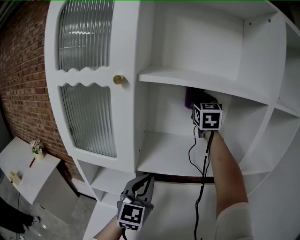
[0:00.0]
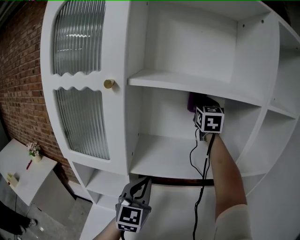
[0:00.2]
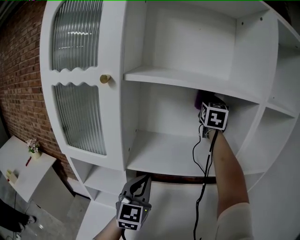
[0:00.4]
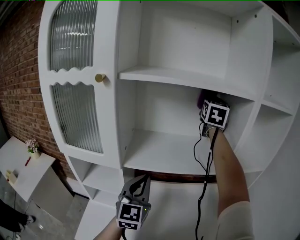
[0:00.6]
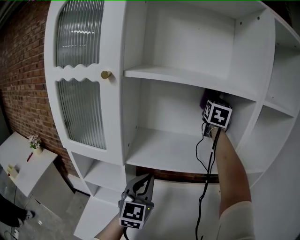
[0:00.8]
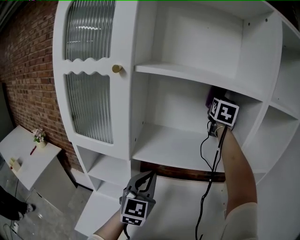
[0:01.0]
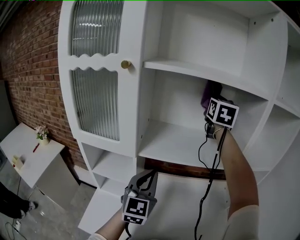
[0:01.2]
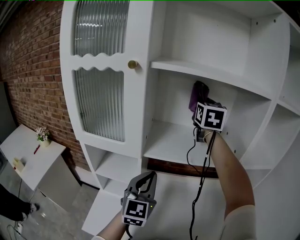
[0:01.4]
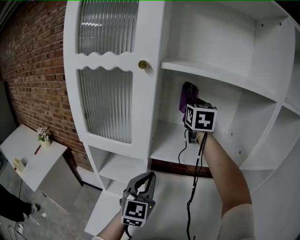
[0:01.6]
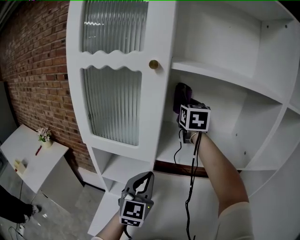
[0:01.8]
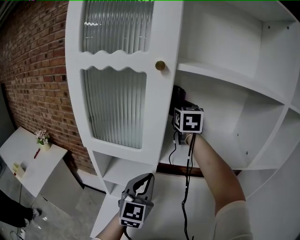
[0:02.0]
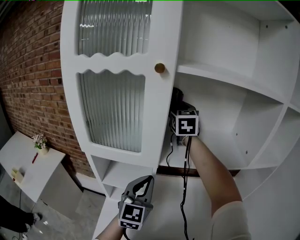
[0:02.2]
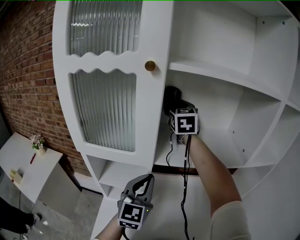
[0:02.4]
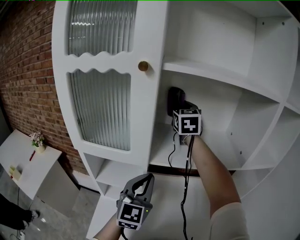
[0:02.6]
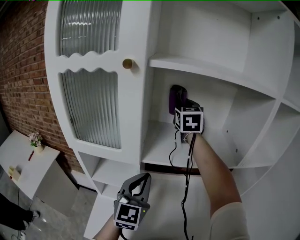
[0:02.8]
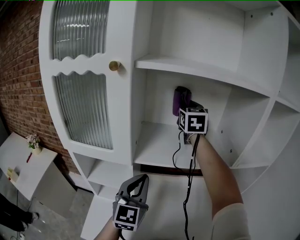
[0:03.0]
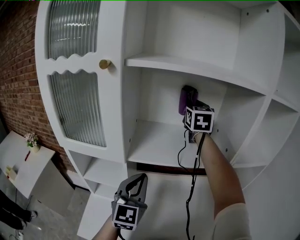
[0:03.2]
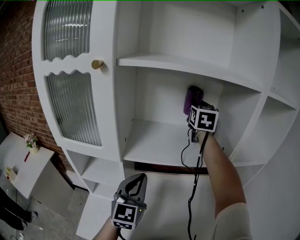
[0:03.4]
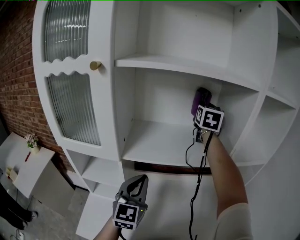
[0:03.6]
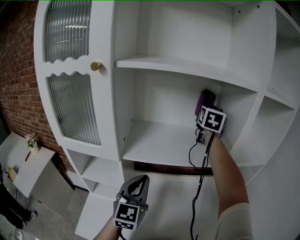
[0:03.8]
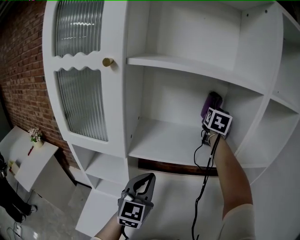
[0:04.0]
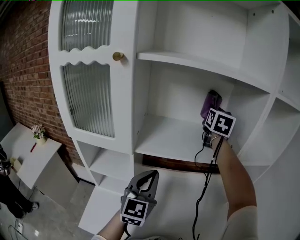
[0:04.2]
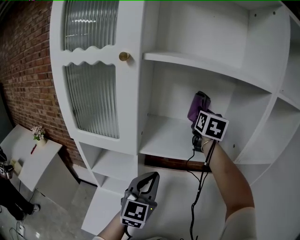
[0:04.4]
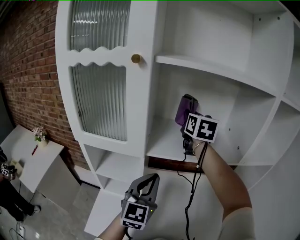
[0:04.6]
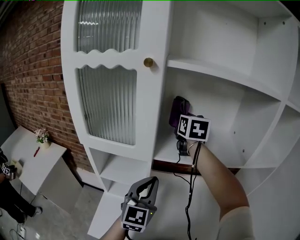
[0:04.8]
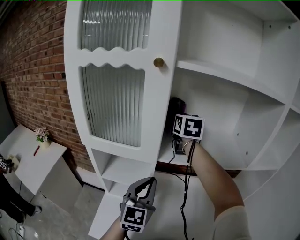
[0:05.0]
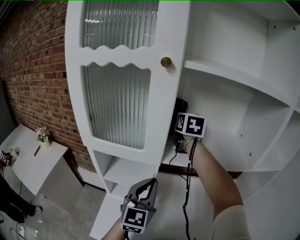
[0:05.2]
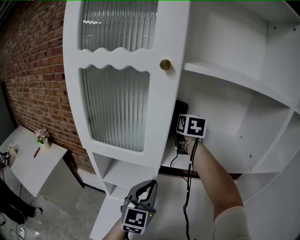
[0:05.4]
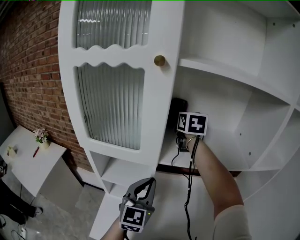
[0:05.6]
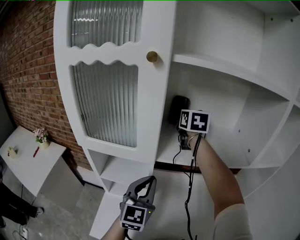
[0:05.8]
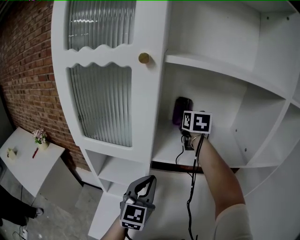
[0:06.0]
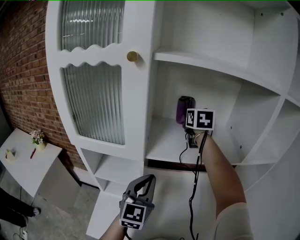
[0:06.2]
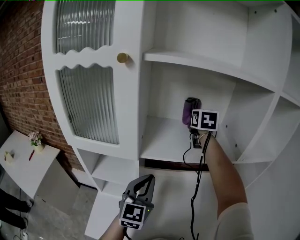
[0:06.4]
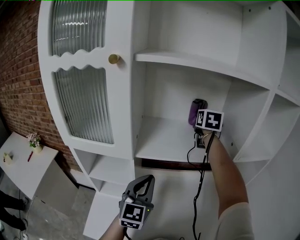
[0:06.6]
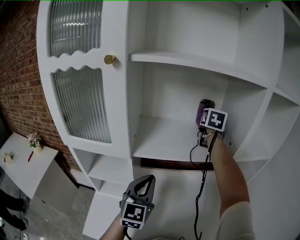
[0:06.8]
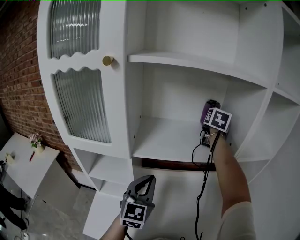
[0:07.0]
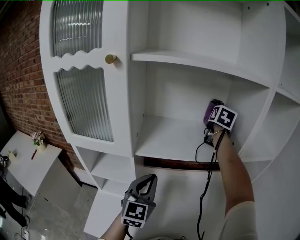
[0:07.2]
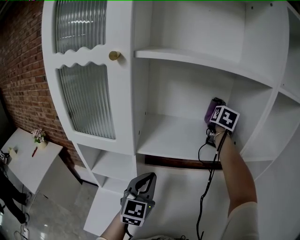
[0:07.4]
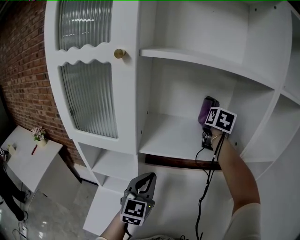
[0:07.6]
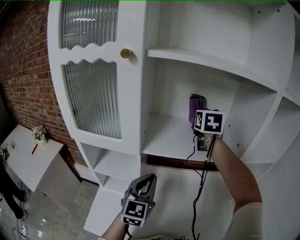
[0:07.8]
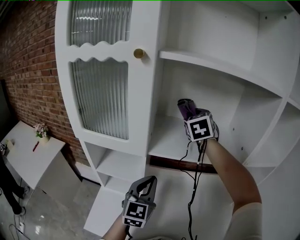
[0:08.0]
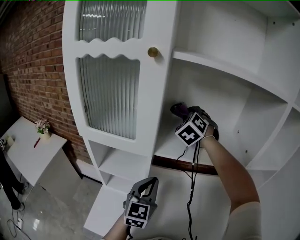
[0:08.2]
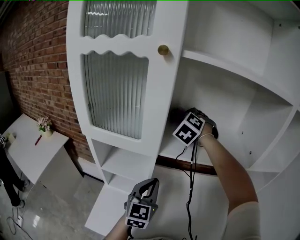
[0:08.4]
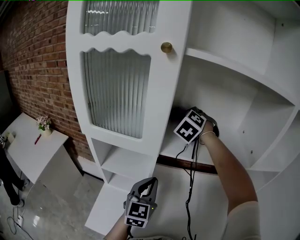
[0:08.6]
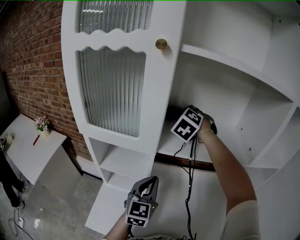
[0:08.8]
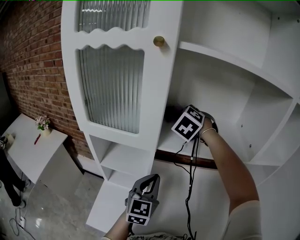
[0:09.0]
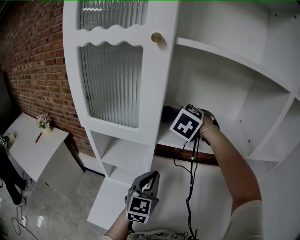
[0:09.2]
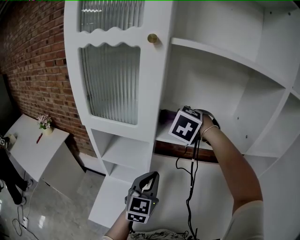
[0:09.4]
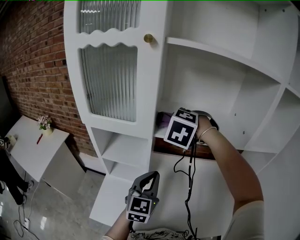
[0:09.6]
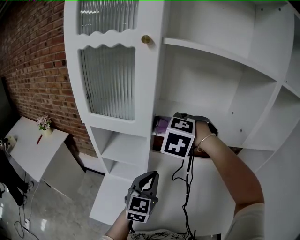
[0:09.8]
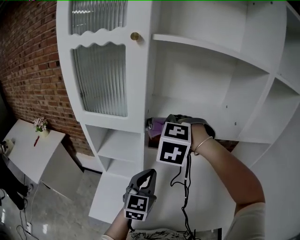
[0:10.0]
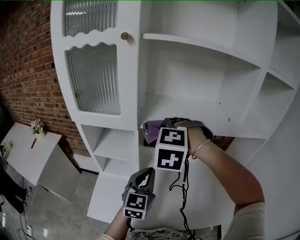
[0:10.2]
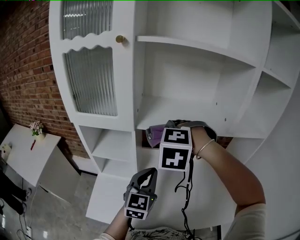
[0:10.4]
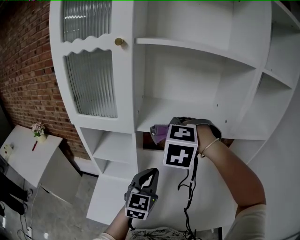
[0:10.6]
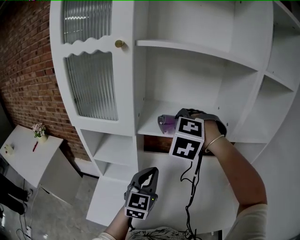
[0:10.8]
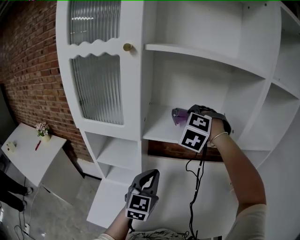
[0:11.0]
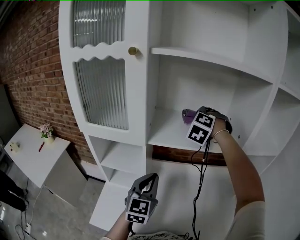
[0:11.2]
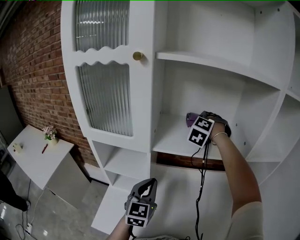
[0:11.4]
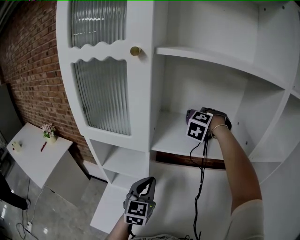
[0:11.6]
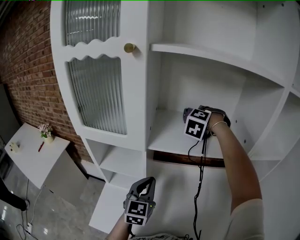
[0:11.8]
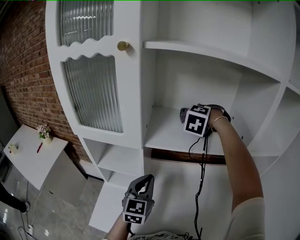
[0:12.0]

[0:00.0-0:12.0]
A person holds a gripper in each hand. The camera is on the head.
0:00.0 to 0:01.6: The left gripper travels to the right and back again, roughly 5 cm each way, while the right gripper heads to the left and downward, covering approximately 10 cm.
0:01.6 to 0:03.0: The right gripper ends up approximately 5 cm from where it was.
0:03.0 to 0:04.4: The right gripper is displaced to the right by approximately 5 cm.
0:04.4 to 0:06.0: The right gripper goes roughly 10 cm to the left. Meanwhile the left gripper shifts roughly 5 cm to the left.
0:06.0 to 0:07.6: The right gripper shifts about 20 cm to the right, while the left gripper is displaced to the right by about 5 cm.
0:07.6 to 0:09.0: The right gripper heads to the left, covering roughly 25 cm, and rolls counterclockwise, seen from behind, by approximately 80 degrees. Meanwhile the left gripper changes place by some 5 cm.
0:09.0 to 0:10.4: The left gripper goes approximately 10 cm backward and to the right, while the right gripper goes approximately 20 cm backward, and turns by roughly 30 degrees.
0:10.4 to 0:12.0: The right gripper heads forward, covering about 25 cm, while the left gripper heads to the left and forward, covering approximately 10 cm.

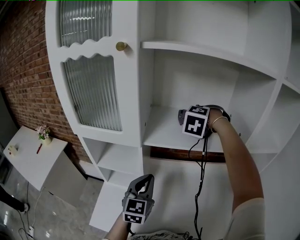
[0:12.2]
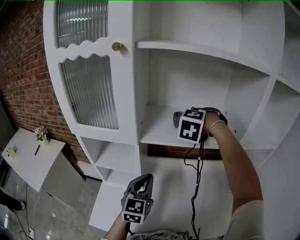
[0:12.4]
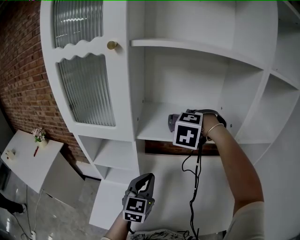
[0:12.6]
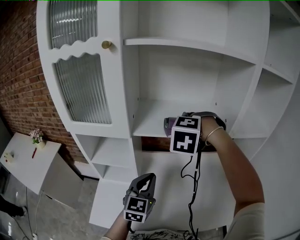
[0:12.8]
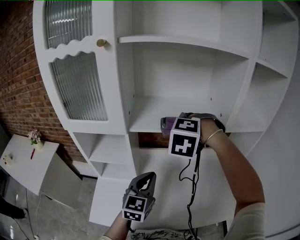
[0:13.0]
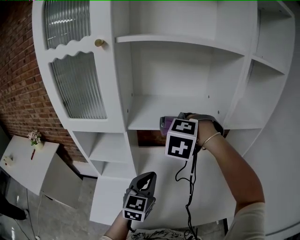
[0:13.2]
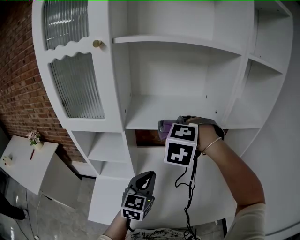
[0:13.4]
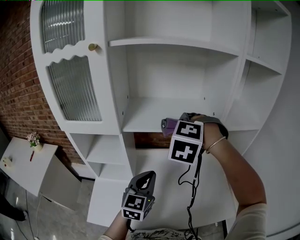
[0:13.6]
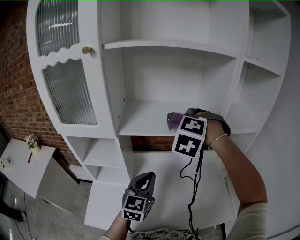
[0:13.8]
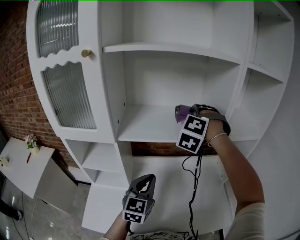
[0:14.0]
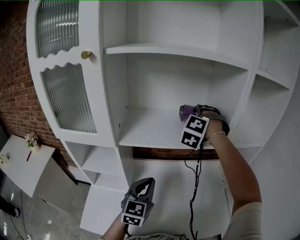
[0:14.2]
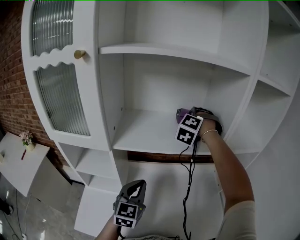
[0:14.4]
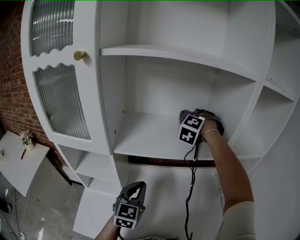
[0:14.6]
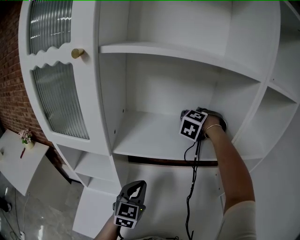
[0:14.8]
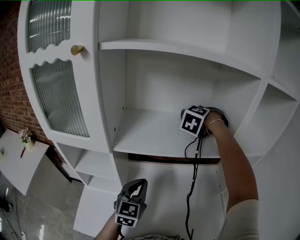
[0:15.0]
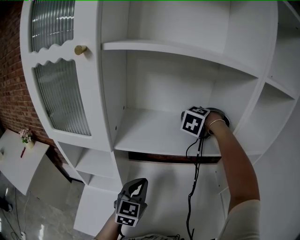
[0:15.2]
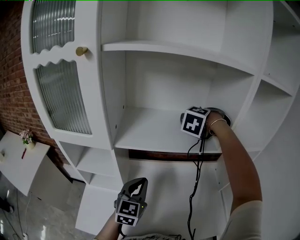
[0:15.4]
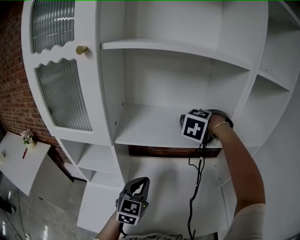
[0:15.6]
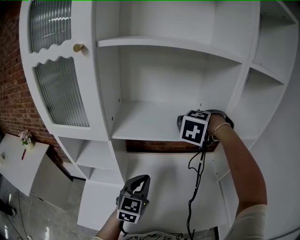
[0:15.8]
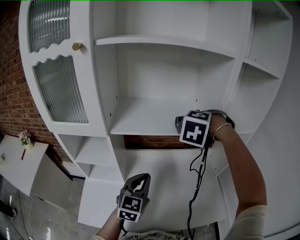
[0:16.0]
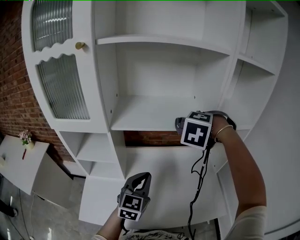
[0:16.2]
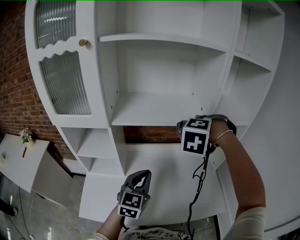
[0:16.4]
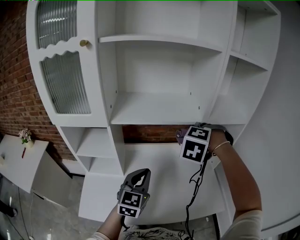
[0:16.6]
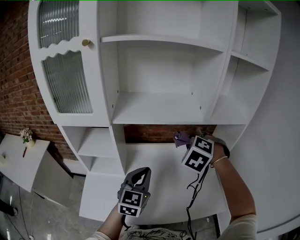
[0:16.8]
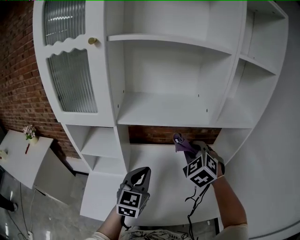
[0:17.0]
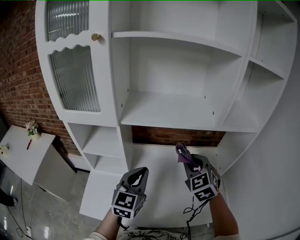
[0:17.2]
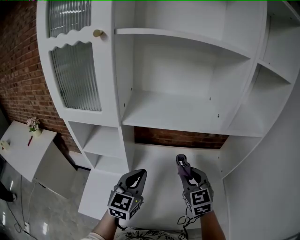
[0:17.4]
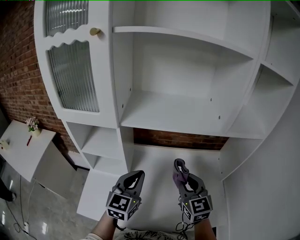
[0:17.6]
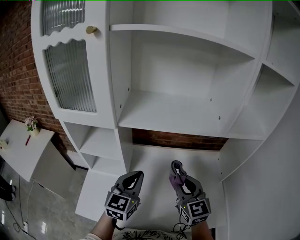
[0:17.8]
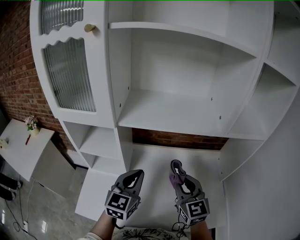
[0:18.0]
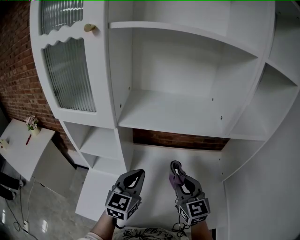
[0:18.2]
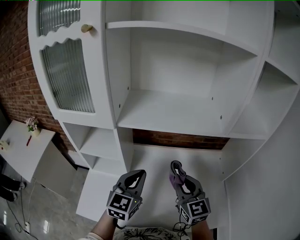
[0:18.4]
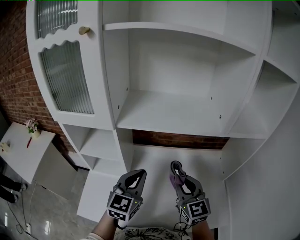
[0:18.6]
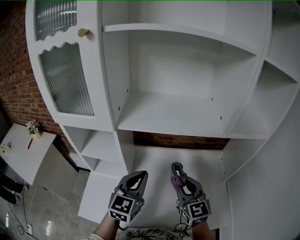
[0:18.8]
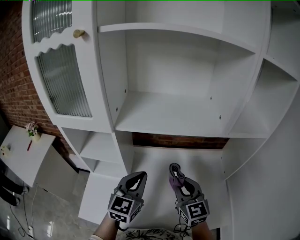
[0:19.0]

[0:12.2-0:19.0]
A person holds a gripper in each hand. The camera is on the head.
0:12.2 to 0:13.6: The left gripper is displaced to the right by some 10 cm; the right gripper goes about 15 cm backward and to the right.
0:13.6 to 0:15.0: The right gripper heads forward, covering some 25 cm, while the left gripper moves forward, roughly 10 cm.
0:15.0 to 0:16.2: The left gripper goes about 10 cm backward and to the right. The right gripper shifts some 20 cm backward and to the right.
0:16.2 to 0:17.6: The left gripper ends up about 5 cm from where it was; the right gripper travels downward by about 15 cm, and points its fingers about 40 degrees further upward.
0:17.6 to 0:19.0: The grippers move only a little.

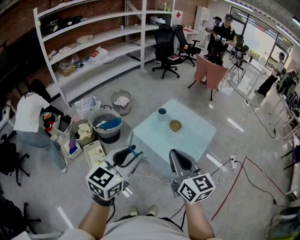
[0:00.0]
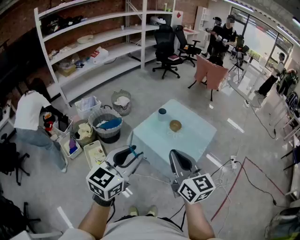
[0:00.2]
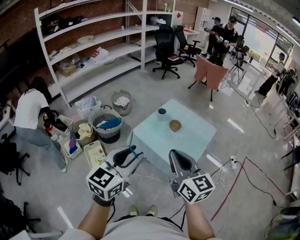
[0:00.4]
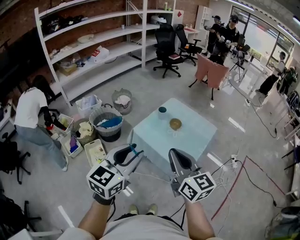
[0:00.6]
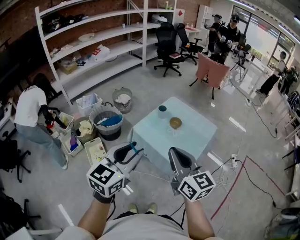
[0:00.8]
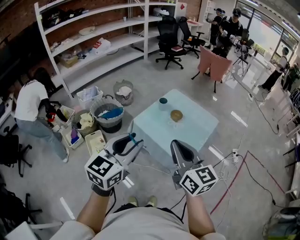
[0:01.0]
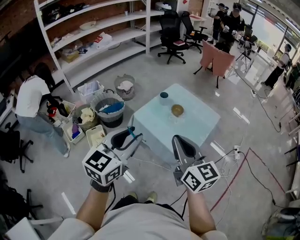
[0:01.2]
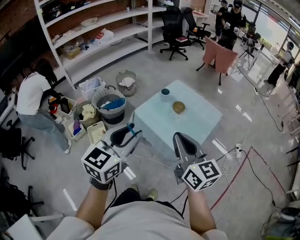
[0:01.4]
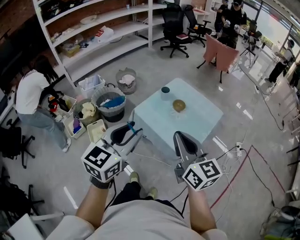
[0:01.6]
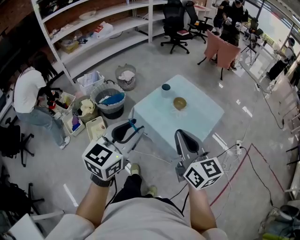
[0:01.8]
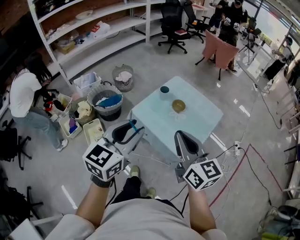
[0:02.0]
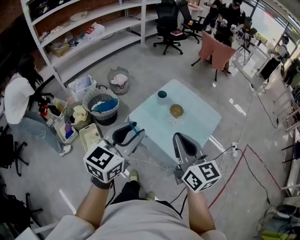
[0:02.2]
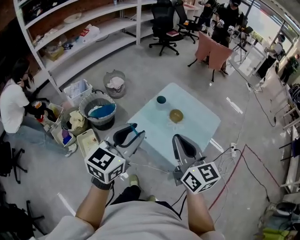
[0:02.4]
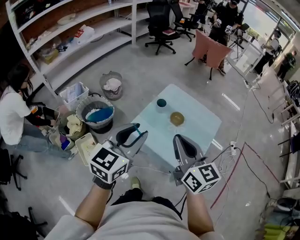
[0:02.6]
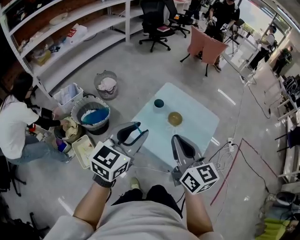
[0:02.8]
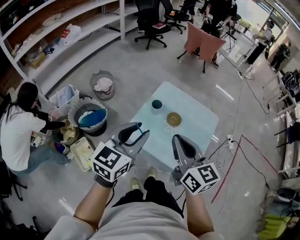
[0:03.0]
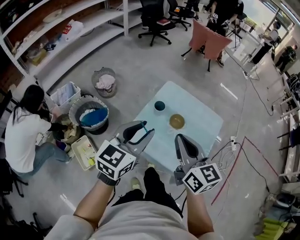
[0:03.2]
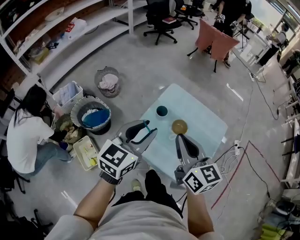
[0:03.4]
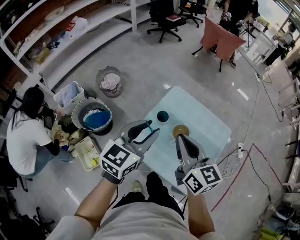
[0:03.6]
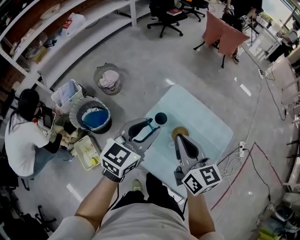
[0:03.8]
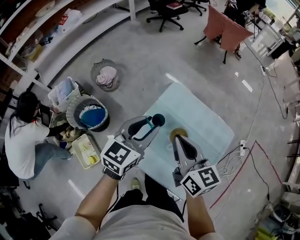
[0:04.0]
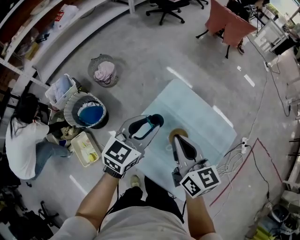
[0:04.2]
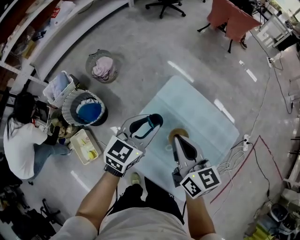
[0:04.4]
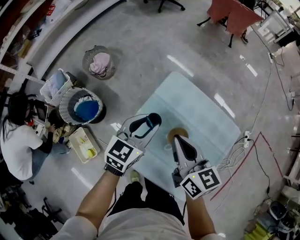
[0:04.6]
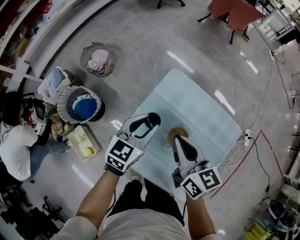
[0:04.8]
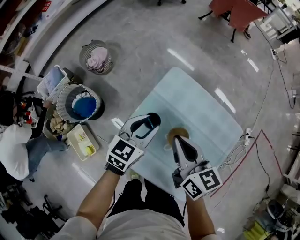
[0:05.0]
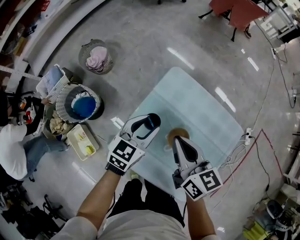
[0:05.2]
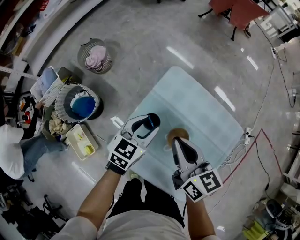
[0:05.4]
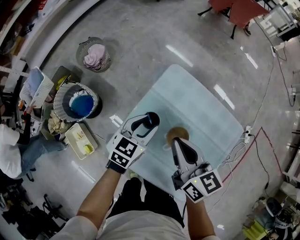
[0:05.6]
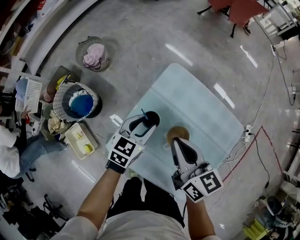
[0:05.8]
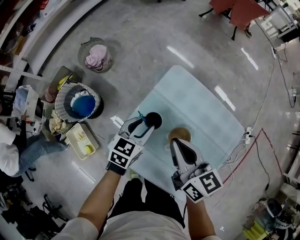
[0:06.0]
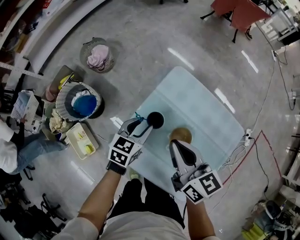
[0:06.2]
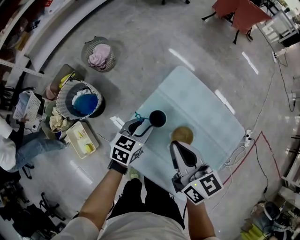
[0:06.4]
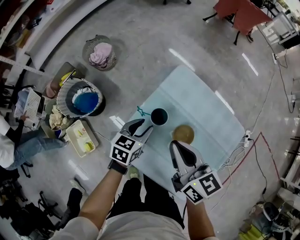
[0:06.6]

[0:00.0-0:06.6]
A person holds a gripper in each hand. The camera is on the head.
0:00.0 to 0:01.6: The right gripper is displaced to the right by about 5 cm.
0:01.6 to 0:03.2: The grippers both shift forward by roughly 30 cm.
0:03.2 to 0:05.0: The two grippers go about 35 cm forward and downward.
0:05.0 to 0:06.6: The left gripper heads downward and to the left, covering about 10 cm, while the right gripper changes place by some 5 cm.
